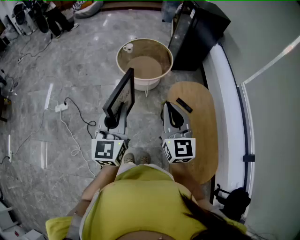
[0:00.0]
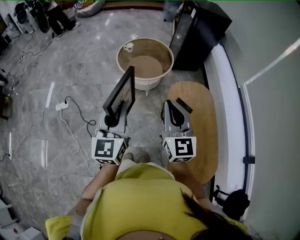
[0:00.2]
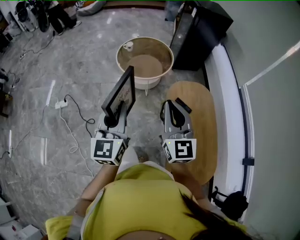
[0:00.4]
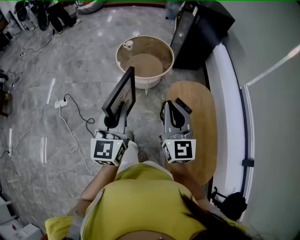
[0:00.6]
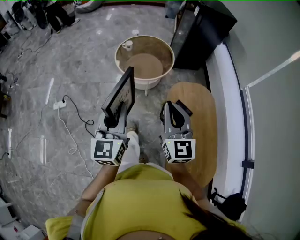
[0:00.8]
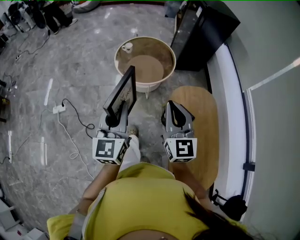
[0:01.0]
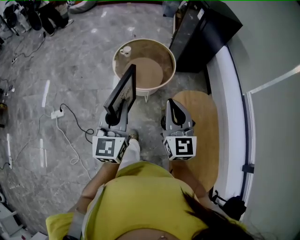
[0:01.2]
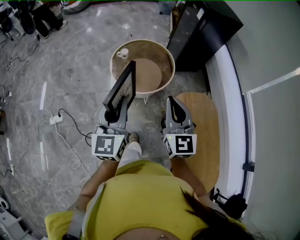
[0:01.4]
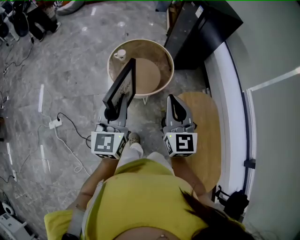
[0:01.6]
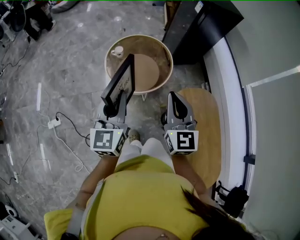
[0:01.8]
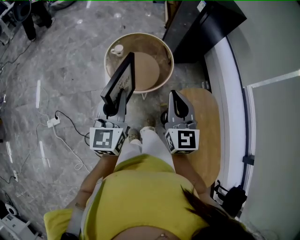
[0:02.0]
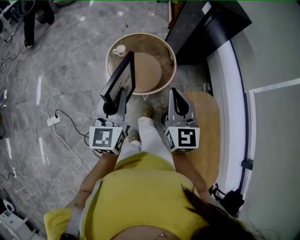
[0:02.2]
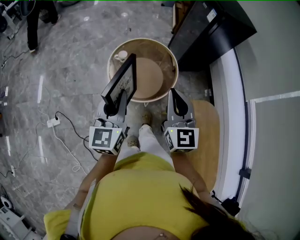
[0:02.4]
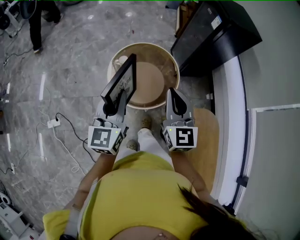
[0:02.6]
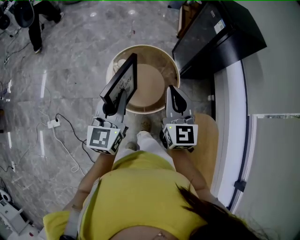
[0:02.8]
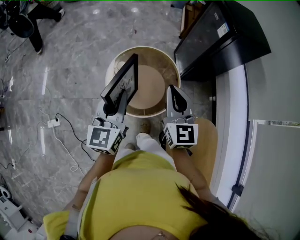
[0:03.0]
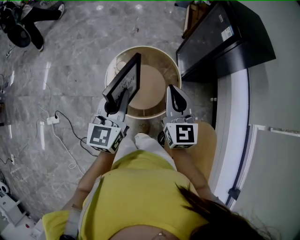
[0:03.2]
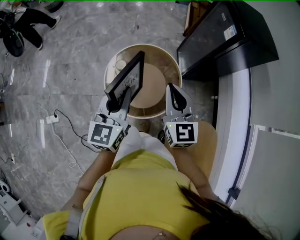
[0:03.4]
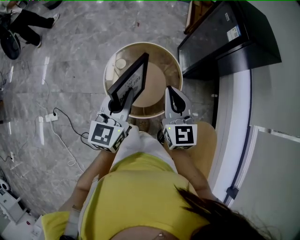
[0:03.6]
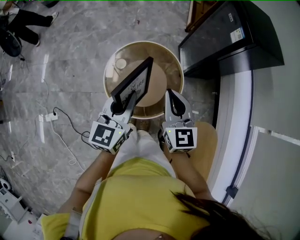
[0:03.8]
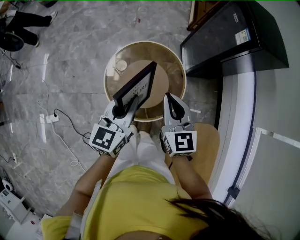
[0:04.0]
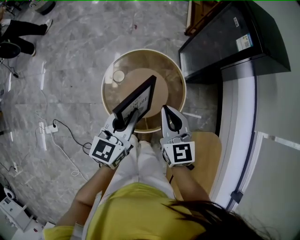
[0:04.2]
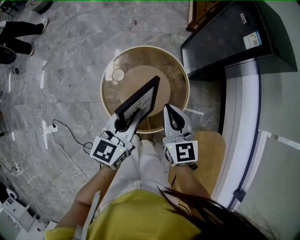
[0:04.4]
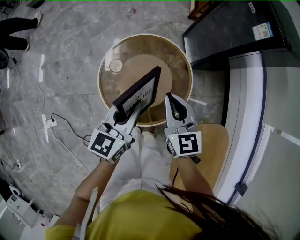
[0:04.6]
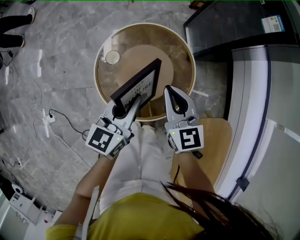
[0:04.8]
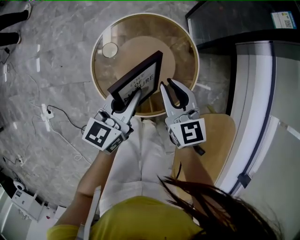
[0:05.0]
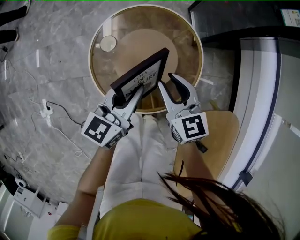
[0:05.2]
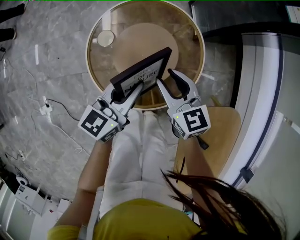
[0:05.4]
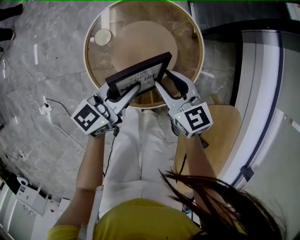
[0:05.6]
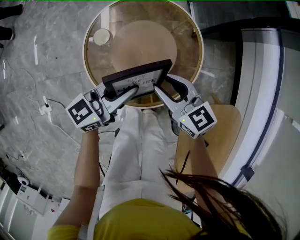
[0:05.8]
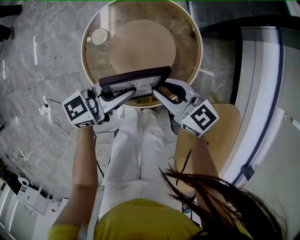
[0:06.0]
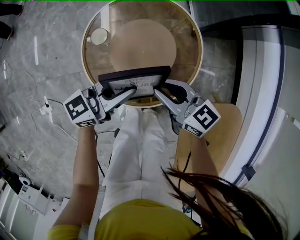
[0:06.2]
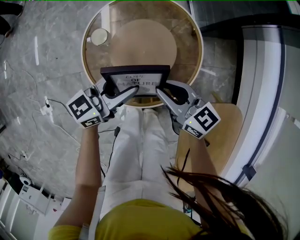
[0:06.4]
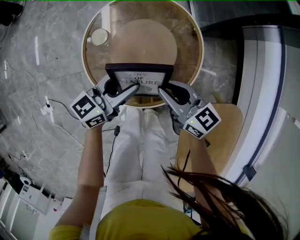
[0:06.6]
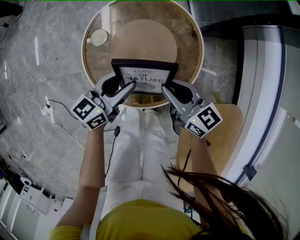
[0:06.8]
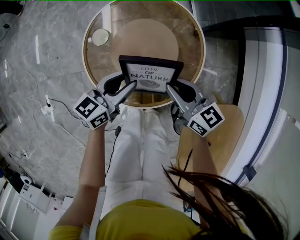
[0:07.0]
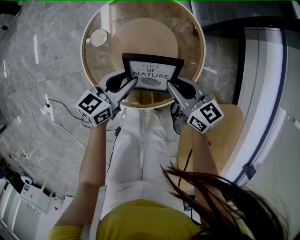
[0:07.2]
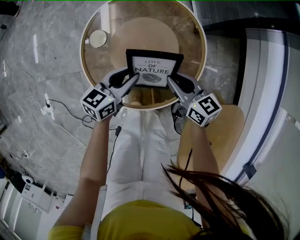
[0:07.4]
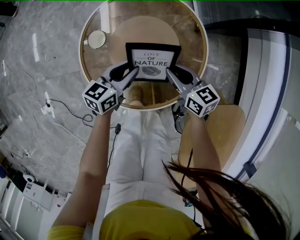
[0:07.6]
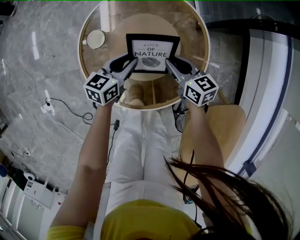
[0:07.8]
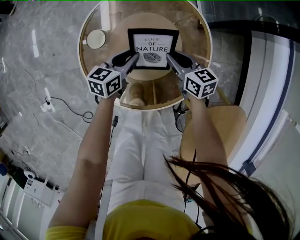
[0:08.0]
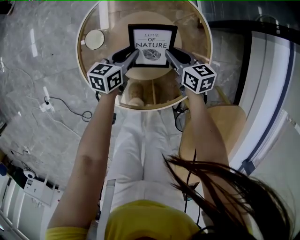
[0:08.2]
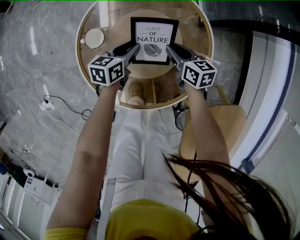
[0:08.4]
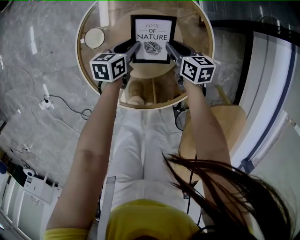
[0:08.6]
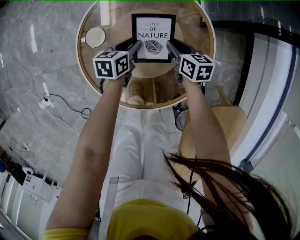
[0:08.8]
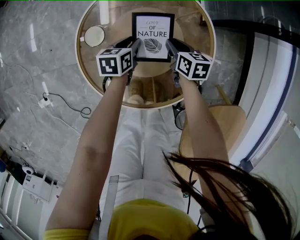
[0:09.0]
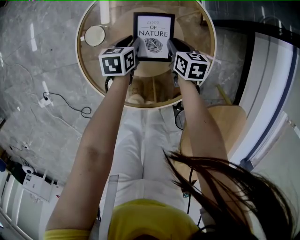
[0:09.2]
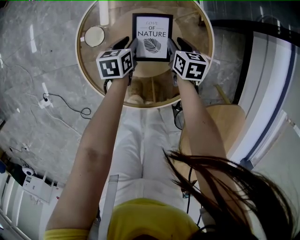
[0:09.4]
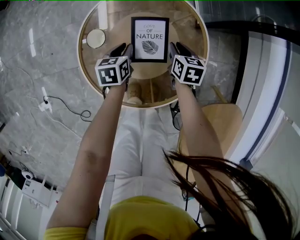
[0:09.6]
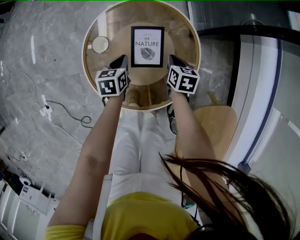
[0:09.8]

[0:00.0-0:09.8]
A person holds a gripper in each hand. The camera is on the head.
0:00.0 to 0:01.4: Both grippers move forward, roughly 25 cm.
0:01.4 to 0:02.8: Both grippers travel together forward, some 30 cm.
0:02.8 to 0:04.2: Both grippers travel together forward and downward, some 20 cm.
0:04.2 to 0:05.6: The two grippers go some 20 cm downward. The left gripper turns by roughly 30 degrees, while the right gripper changes its angle by some 20 degrees, and opens.
0:05.6 to 0:07.0: The right gripper shifts by roughly 5 cm, and closes. Meanwhile the left gripper goes about 5 cm downward, and opens.
0:07.0 to 0:08.4: Both grippers travel together downward and forward, some 20 cm. The right gripper turns by about 20 degrees, while the left gripper turns by approximately 20 degrees.
0:08.4 to 0:09.8: The left gripper changes place by approximately 5 cm, and closes its fingers; the right gripper swivels approximately 20 degrees.

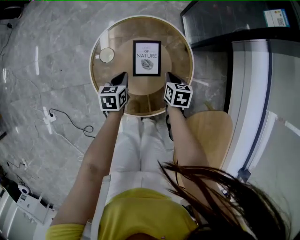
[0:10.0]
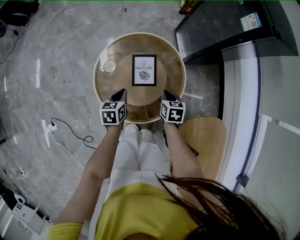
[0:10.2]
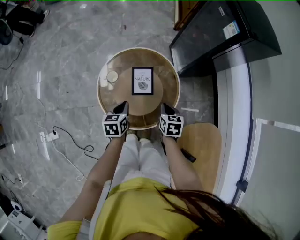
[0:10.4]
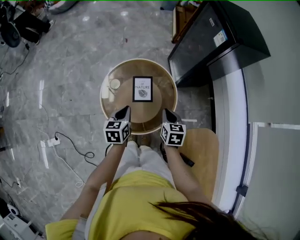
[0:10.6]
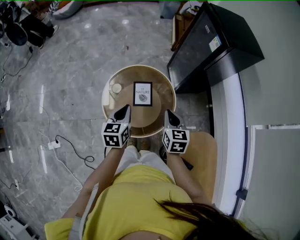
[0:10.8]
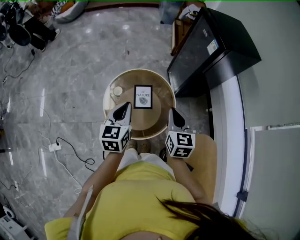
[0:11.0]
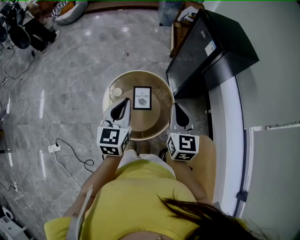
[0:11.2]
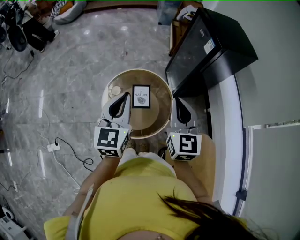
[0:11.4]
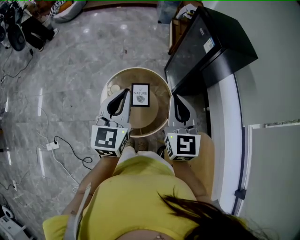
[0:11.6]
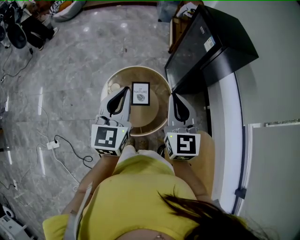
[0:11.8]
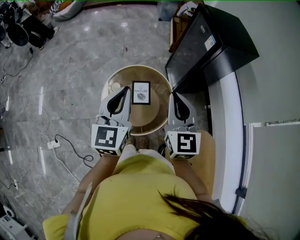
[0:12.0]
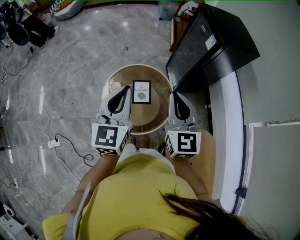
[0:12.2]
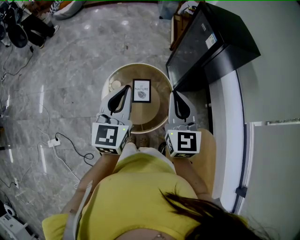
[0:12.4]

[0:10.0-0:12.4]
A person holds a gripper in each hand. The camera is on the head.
0:10.0 to 0:11.2: The grippers both shift upward by some 50 cm. The right gripper tips its fingers upward by roughly 40 degrees; the left gripper tips its fingers upward by roughly 30 degrees.
0:11.2 to 0:12.4: The grippers both shift upward by roughly 5 cm.

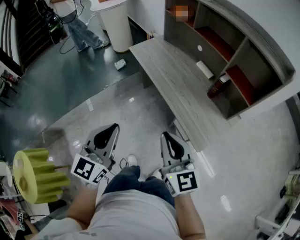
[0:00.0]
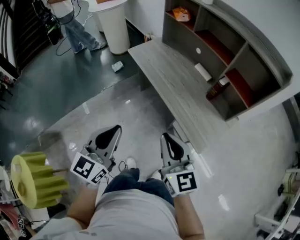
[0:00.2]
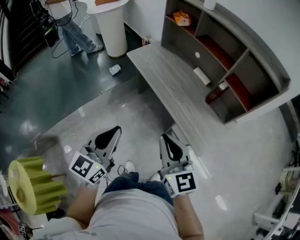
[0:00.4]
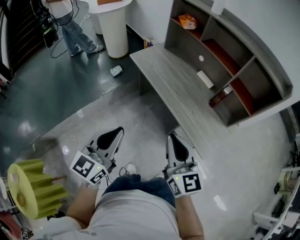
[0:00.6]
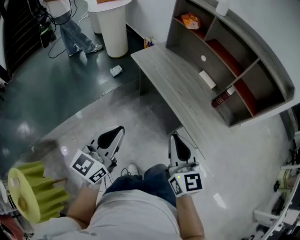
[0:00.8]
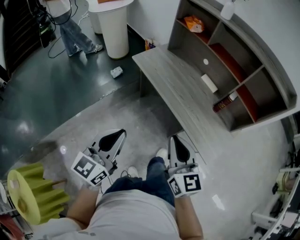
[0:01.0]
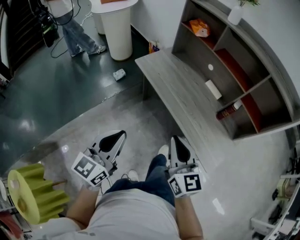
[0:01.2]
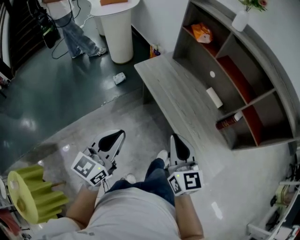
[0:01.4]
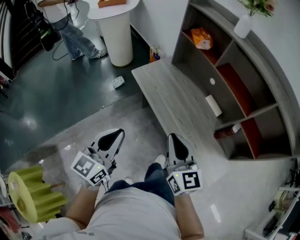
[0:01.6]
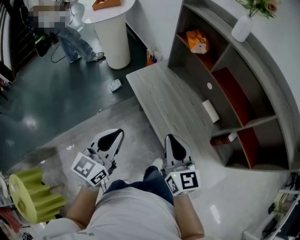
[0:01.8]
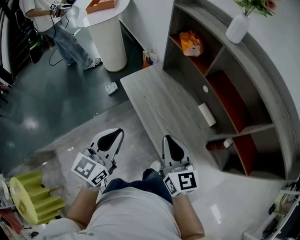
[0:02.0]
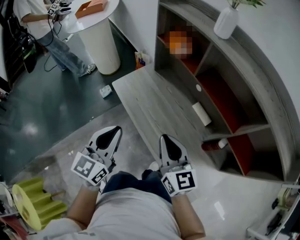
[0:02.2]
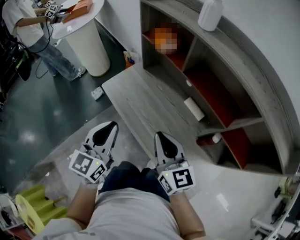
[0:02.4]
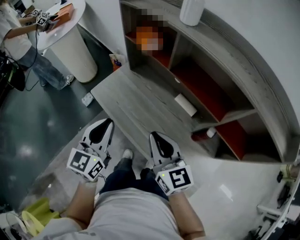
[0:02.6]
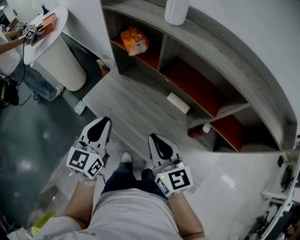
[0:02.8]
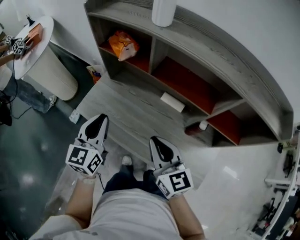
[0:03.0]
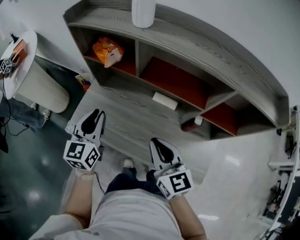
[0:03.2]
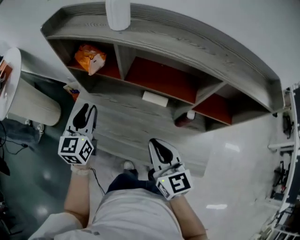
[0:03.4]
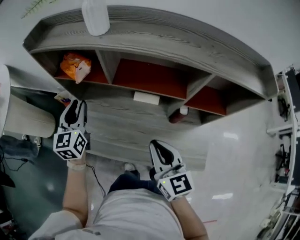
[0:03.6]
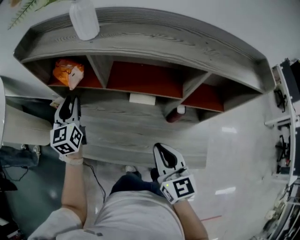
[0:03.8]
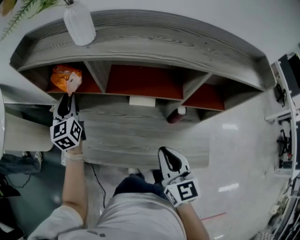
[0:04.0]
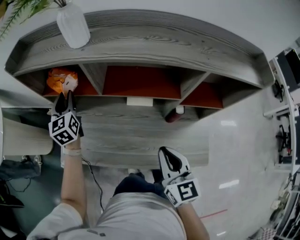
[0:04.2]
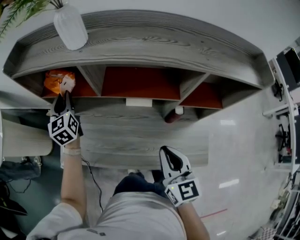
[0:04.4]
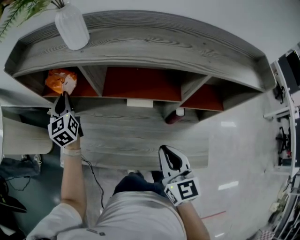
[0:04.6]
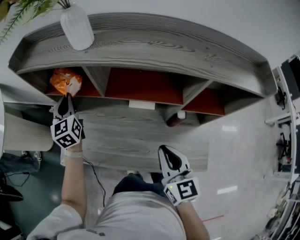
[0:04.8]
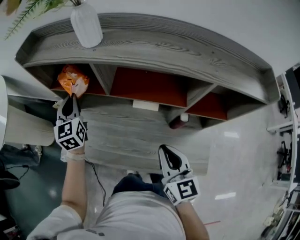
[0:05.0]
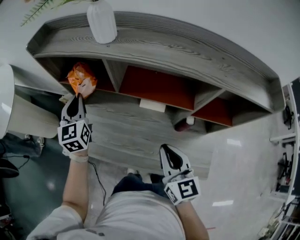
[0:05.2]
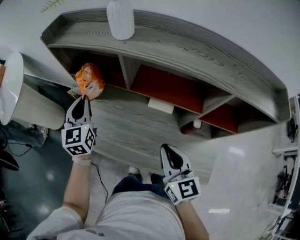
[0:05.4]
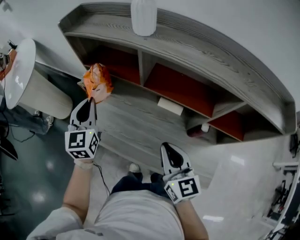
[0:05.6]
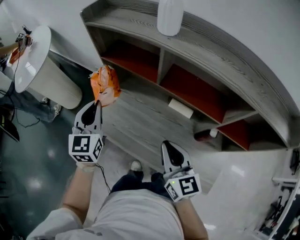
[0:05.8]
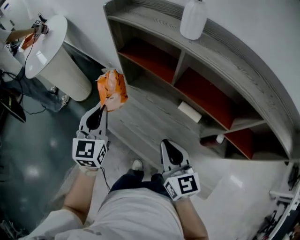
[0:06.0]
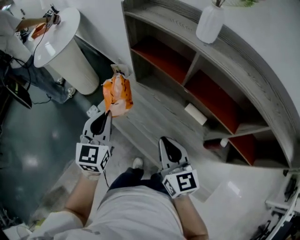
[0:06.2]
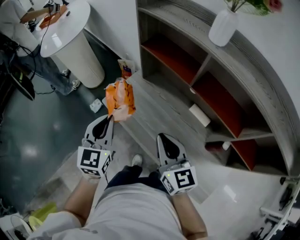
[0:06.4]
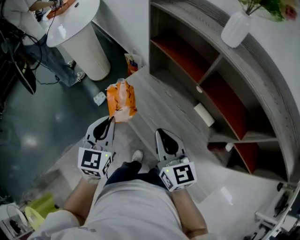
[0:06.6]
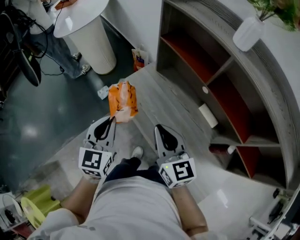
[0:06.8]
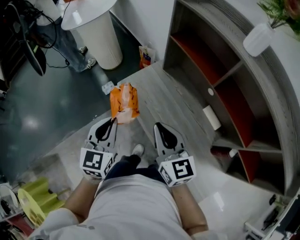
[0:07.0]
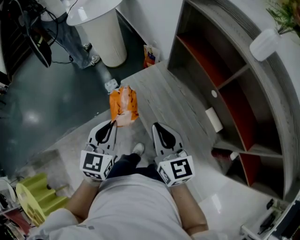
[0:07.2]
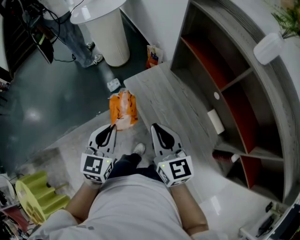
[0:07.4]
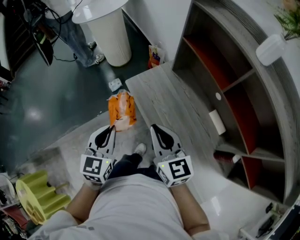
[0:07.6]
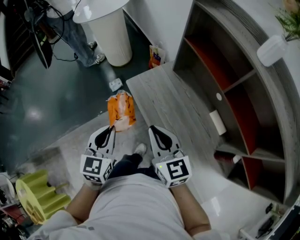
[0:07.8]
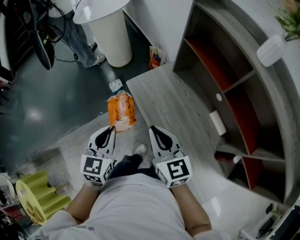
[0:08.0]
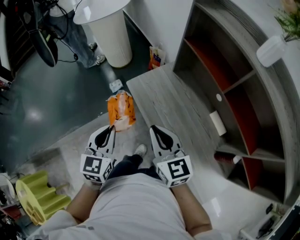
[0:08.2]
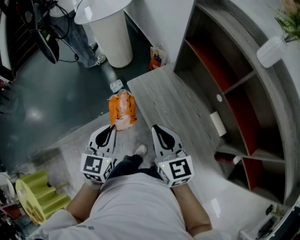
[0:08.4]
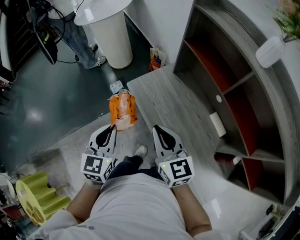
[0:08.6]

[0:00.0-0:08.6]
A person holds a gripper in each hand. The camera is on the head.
0:00.0 to 0:01.4: Both grippers move forward and to the left, about 25 cm.
0:01.4 to 0:02.8: The two grippers go some 30 cm forward and to the right.
0:02.8 to 0:04.4: The left gripper heads forward, covering some 35 cm; the right gripper is displaced to the right by about 10 cm, and changes its angle by about 40 degrees.
0:04.4 to 0:05.8: The left gripper heads backward, covering about 20 cm, while the right gripper shifts approximately 10 cm to the left, and turns by about 30 degrees.
0:05.8 to 0:07.2: The left gripper changes place by about 25 cm, and rotates about 20 degrees; the right gripper changes place by about 20 cm, and swivels about 30 degrees.
0:07.2 to 0:08.6: The grippers make only small movements.

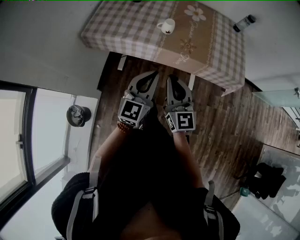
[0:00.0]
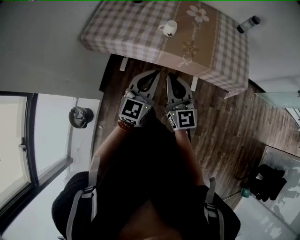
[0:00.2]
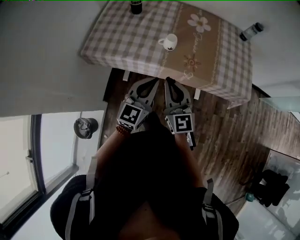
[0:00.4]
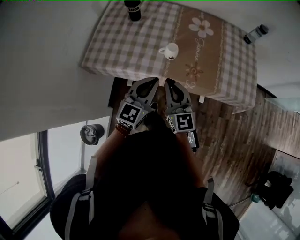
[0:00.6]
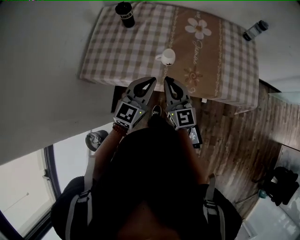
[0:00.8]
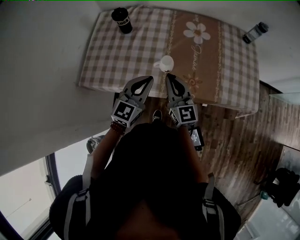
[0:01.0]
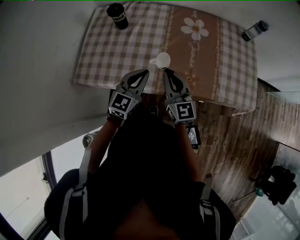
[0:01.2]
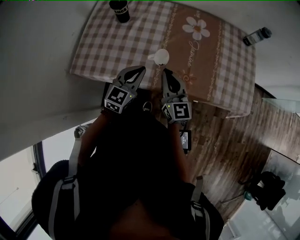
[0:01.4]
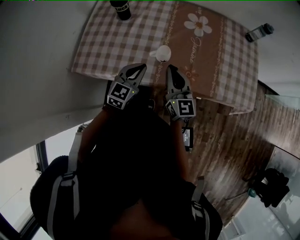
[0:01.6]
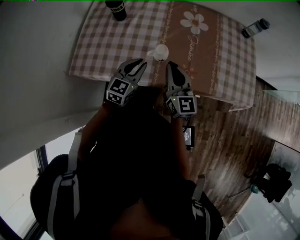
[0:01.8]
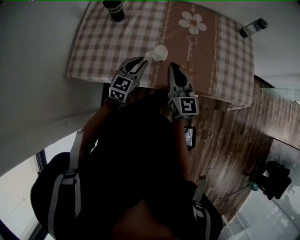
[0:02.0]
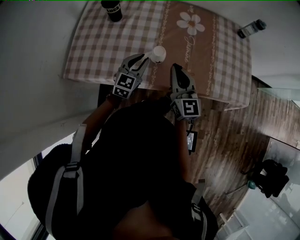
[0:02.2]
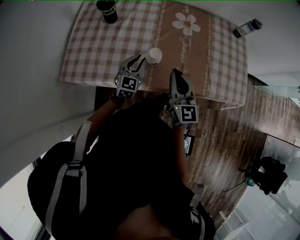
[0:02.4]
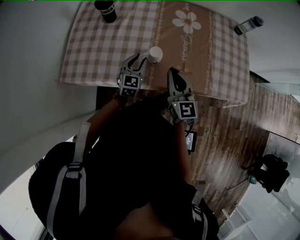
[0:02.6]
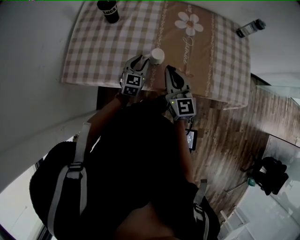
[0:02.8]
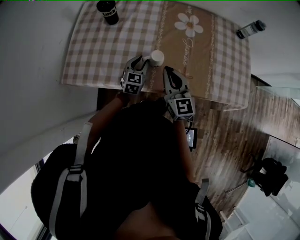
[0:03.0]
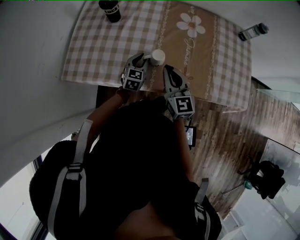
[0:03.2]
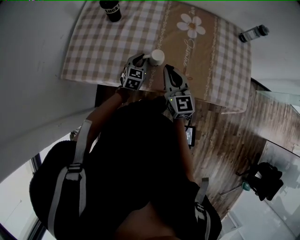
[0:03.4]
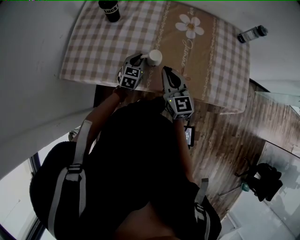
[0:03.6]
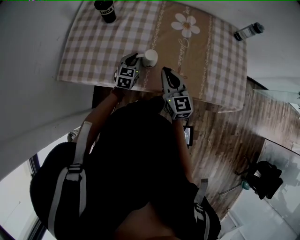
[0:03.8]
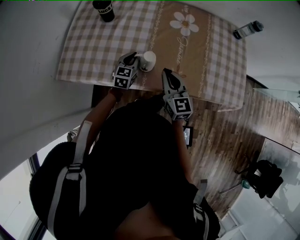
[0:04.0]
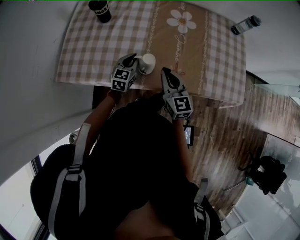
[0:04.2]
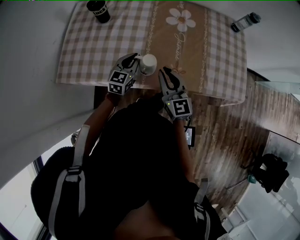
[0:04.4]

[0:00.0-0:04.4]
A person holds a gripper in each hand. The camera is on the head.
0:00.0 to 0:01.4: Both grippers travel together forward, approximately 30 cm. The left gripper swivels roughly 20 degrees.
0:01.4 to 0:03.0: The left gripper is displaced downward and forward by approximately 20 cm.
0:03.0 to 0:04.4: The left gripper moves upward, about 5 cm.
